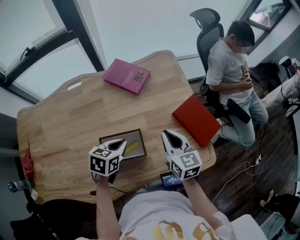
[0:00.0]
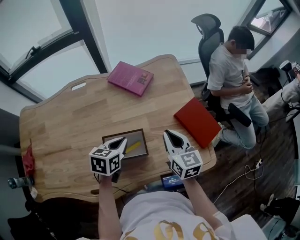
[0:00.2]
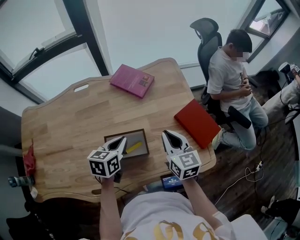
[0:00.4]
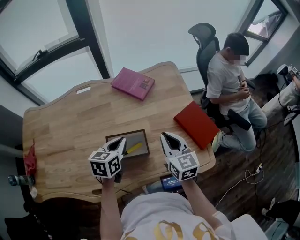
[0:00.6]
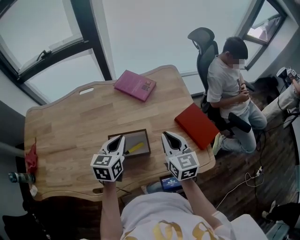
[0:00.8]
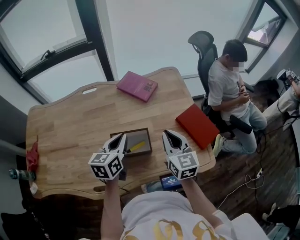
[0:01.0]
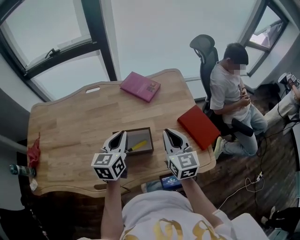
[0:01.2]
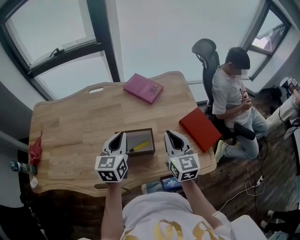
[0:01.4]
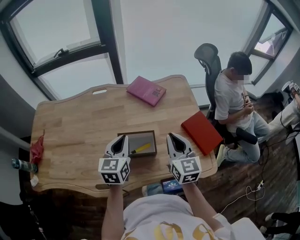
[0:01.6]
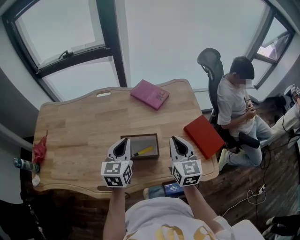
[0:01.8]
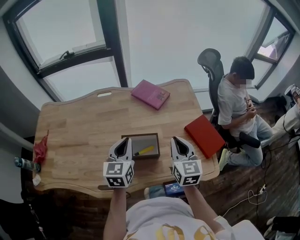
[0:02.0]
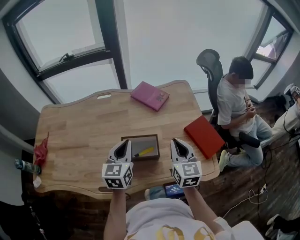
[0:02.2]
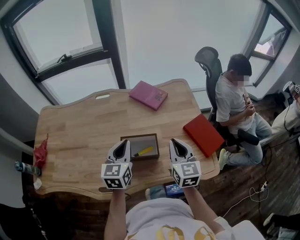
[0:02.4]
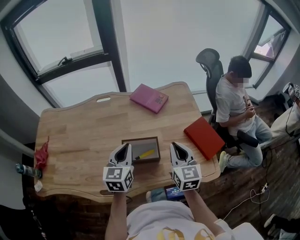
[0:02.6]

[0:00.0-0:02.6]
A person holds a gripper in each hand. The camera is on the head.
0:00.0 to 0:01.2: The left gripper heads upward, covering about 15 cm, and swivels approximately 40 degrees; the right gripper goes roughly 10 cm upward.
0:01.2 to 0:02.6: The grippers make only small movements.

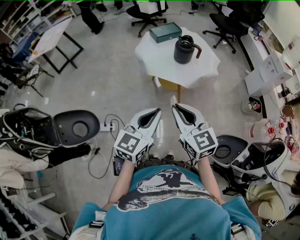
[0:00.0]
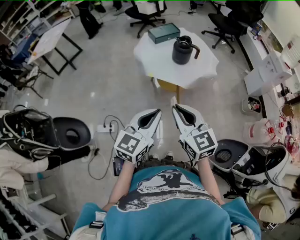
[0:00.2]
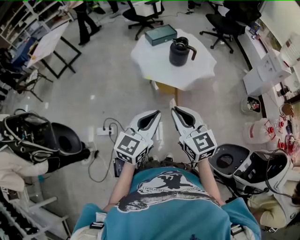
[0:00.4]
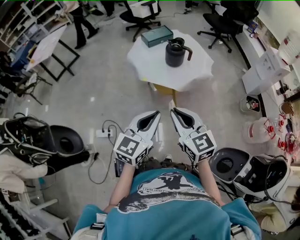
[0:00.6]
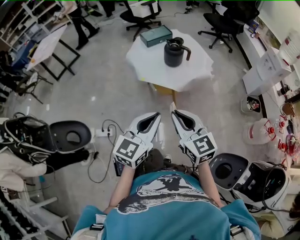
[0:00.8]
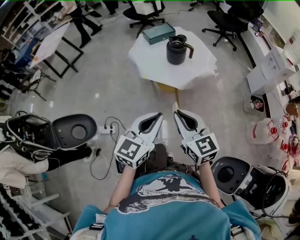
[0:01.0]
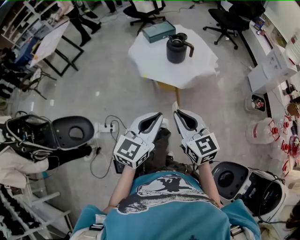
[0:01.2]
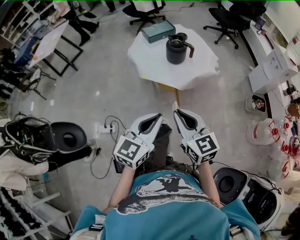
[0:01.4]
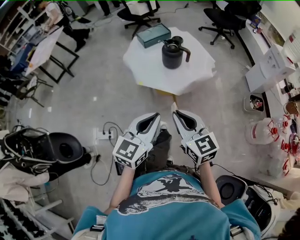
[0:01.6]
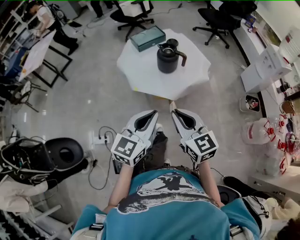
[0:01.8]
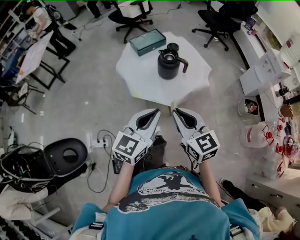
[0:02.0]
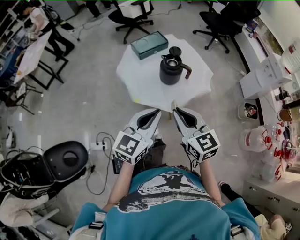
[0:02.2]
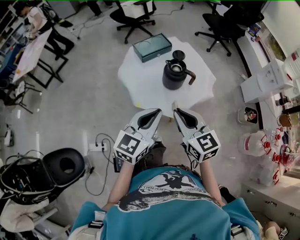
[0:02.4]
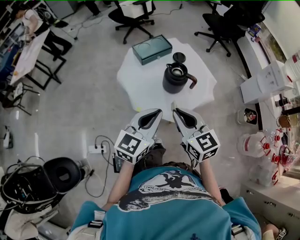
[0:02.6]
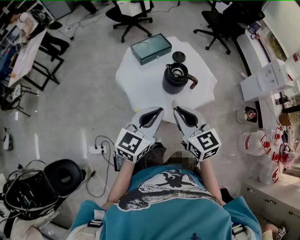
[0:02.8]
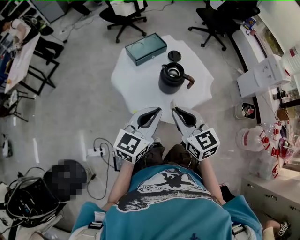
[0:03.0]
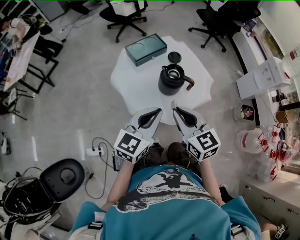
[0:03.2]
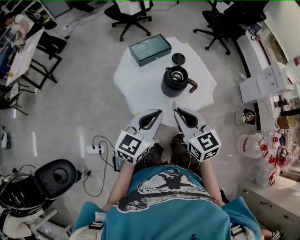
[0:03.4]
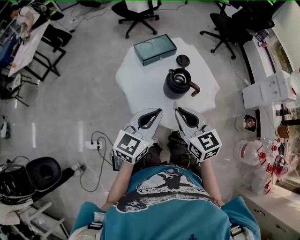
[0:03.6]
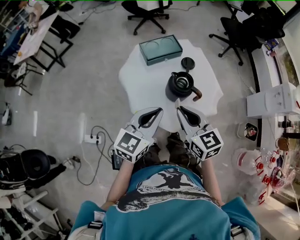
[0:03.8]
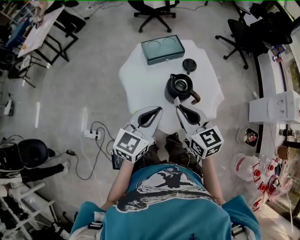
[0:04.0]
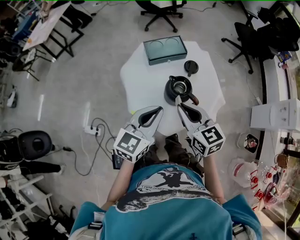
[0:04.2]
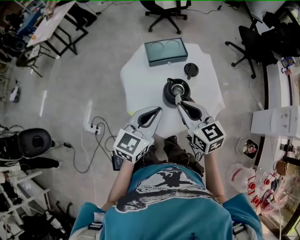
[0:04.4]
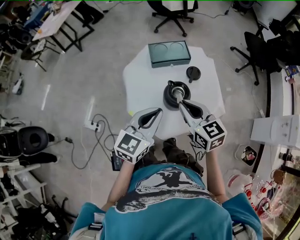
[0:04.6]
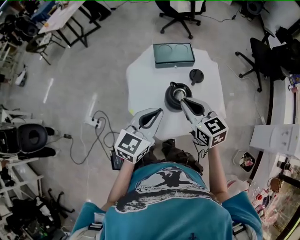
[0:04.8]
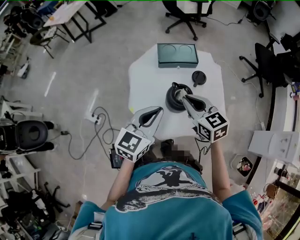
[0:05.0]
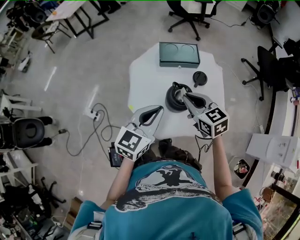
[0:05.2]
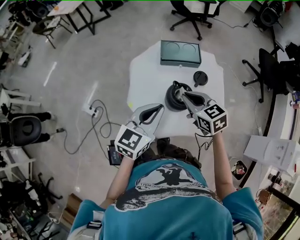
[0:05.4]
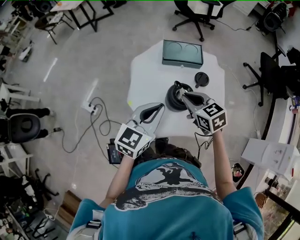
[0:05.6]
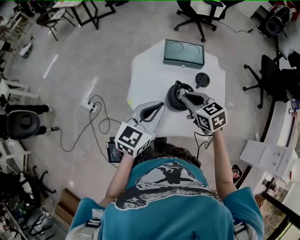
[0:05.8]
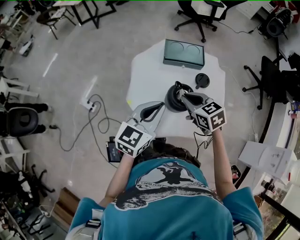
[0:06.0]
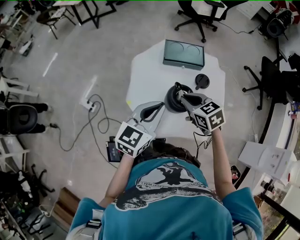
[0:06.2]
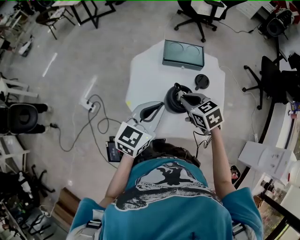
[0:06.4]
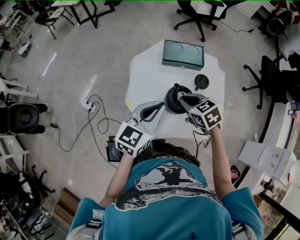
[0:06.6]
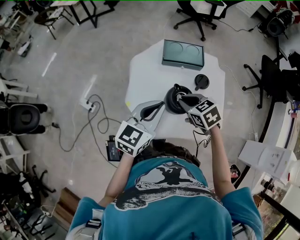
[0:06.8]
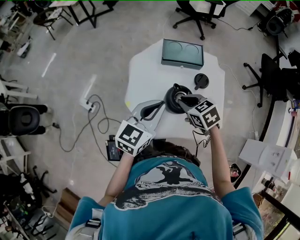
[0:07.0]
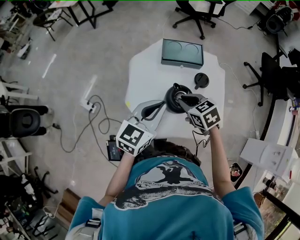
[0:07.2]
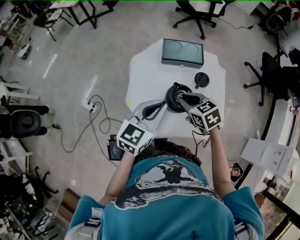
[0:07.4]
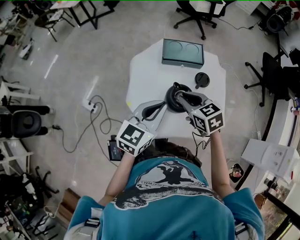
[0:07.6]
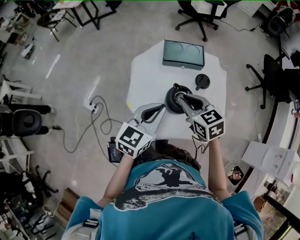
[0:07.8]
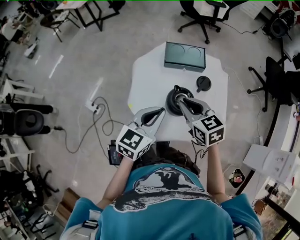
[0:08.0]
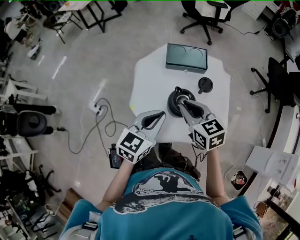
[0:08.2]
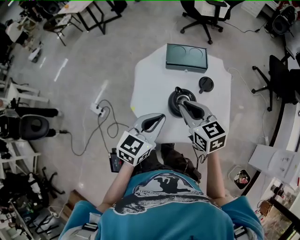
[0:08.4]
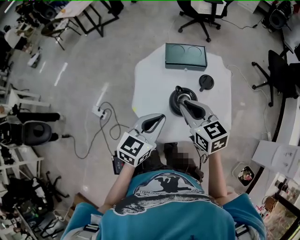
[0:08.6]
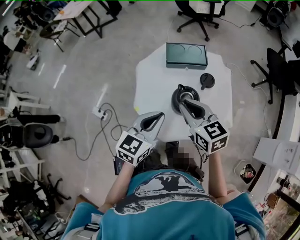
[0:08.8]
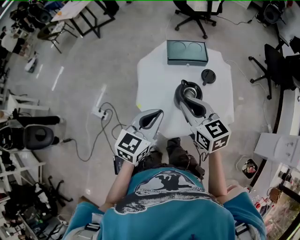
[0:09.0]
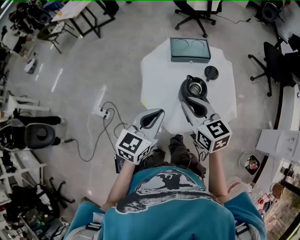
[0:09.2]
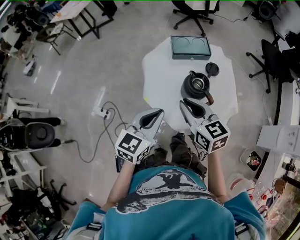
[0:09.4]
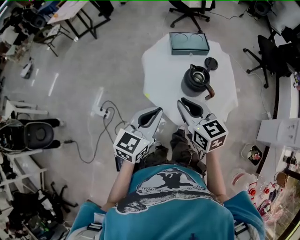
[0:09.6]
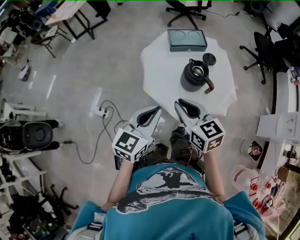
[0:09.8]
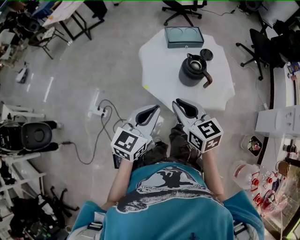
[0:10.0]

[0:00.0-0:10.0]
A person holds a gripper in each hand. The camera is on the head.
0:00.0 to 0:01.4: Both grippers move to the right, roughly 5 cm.
0:01.4 to 0:02.8: The two grippers go roughly 25 cm forward.
0:02.8 to 0:04.2: The grippers both shift forward by roughly 10 cm.
0:04.2 to 0:05.8: The right gripper goes roughly 10 cm forward and downward, and rotates approximately 30 degrees.
0:05.8 to 0:07.2: The grippers move only a little.
0:07.2 to 0:08.6: The right gripper moves upward, roughly 10 cm, and changes its angle by about 30 degrees.
0:08.6 to 0:10.0: Both grippers move backward and to the left, some 20 cm.

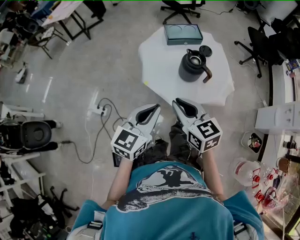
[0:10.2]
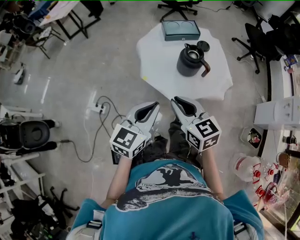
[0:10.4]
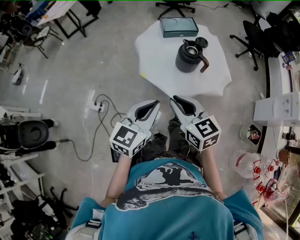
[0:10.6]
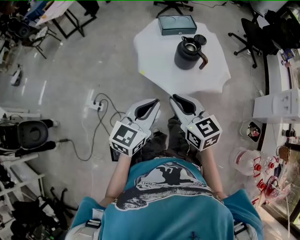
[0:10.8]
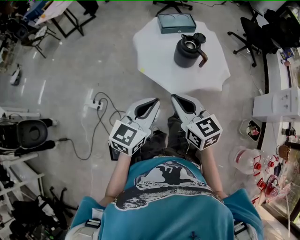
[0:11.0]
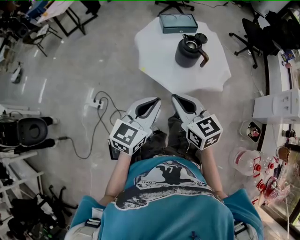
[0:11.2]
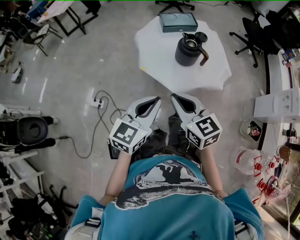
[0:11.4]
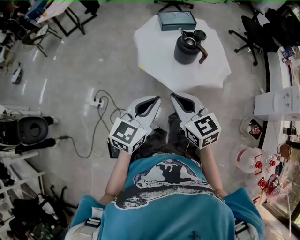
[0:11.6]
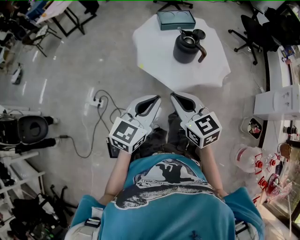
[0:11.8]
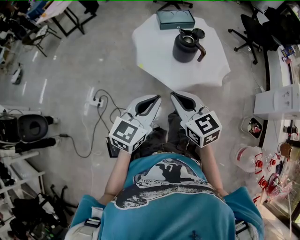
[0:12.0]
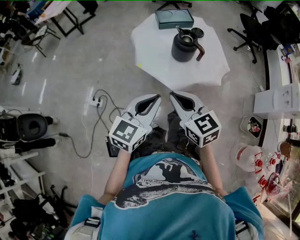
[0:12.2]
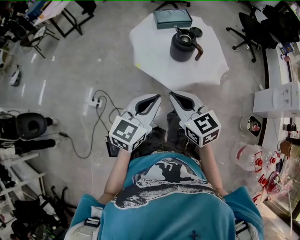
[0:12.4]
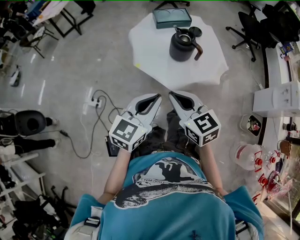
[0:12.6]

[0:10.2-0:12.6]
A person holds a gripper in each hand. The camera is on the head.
0:10.2 to 0:11.4: Both grippers travel together backward, roughly 5 cm.
0:11.4 to 0:12.6: The grippers move only a little.

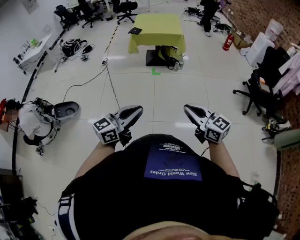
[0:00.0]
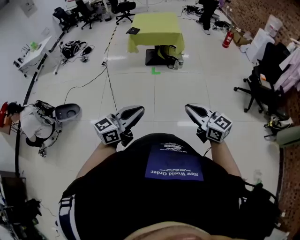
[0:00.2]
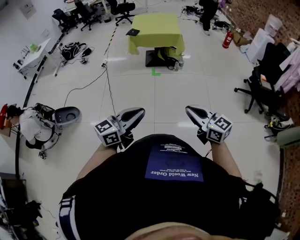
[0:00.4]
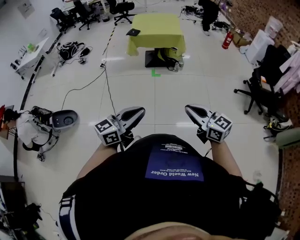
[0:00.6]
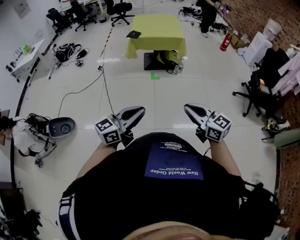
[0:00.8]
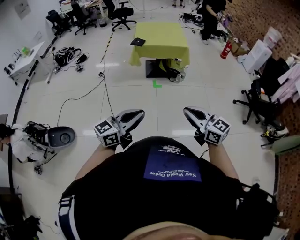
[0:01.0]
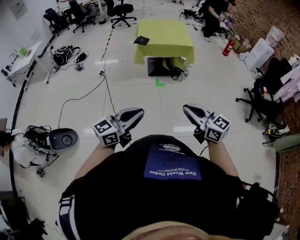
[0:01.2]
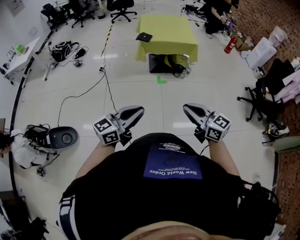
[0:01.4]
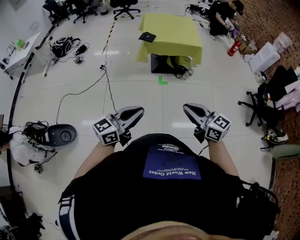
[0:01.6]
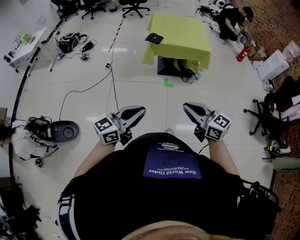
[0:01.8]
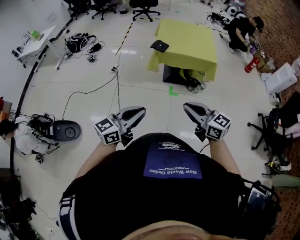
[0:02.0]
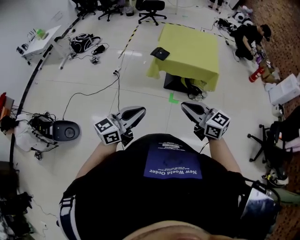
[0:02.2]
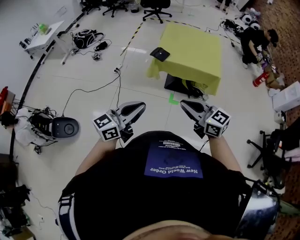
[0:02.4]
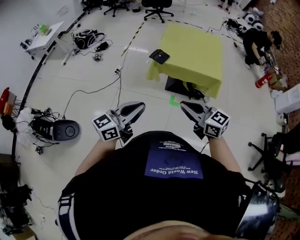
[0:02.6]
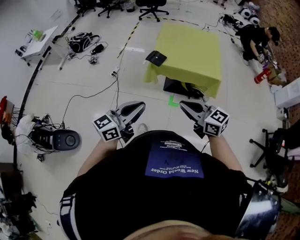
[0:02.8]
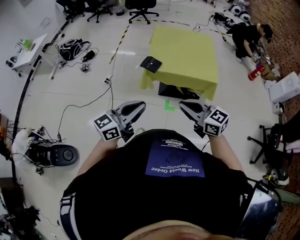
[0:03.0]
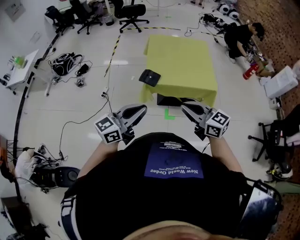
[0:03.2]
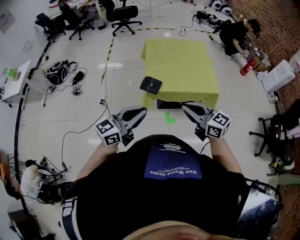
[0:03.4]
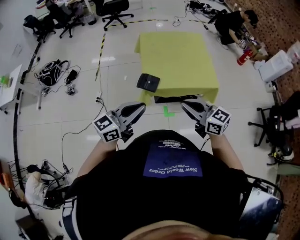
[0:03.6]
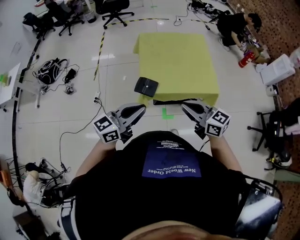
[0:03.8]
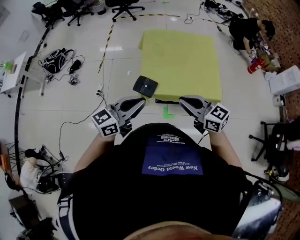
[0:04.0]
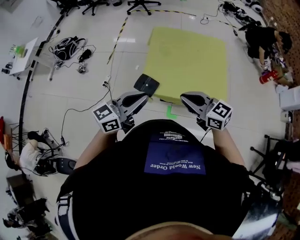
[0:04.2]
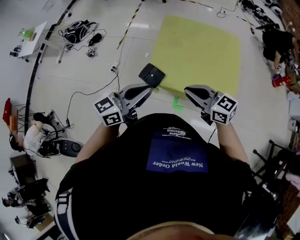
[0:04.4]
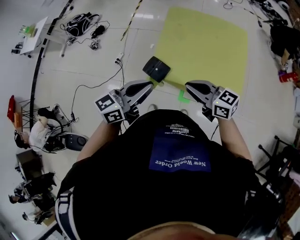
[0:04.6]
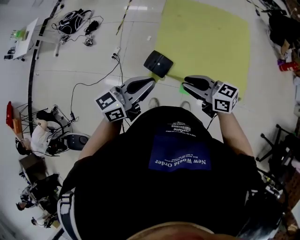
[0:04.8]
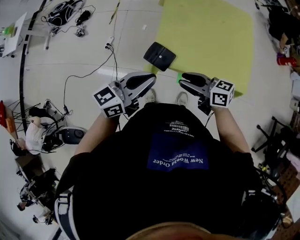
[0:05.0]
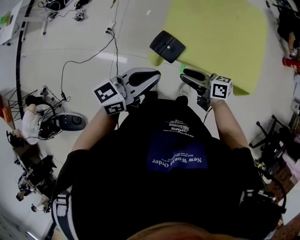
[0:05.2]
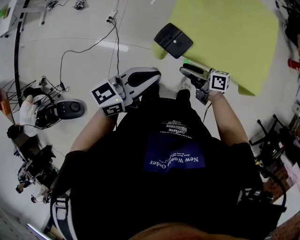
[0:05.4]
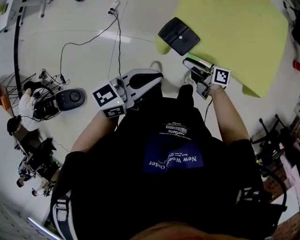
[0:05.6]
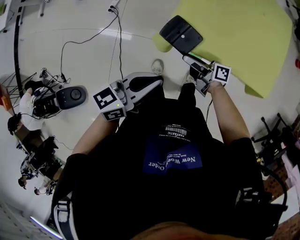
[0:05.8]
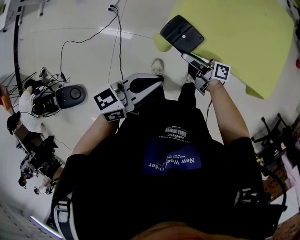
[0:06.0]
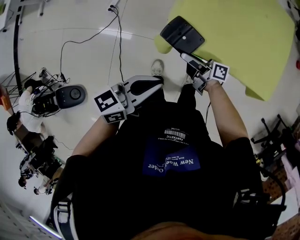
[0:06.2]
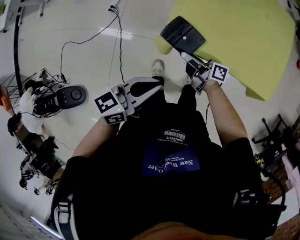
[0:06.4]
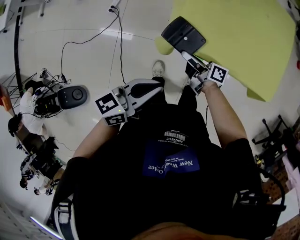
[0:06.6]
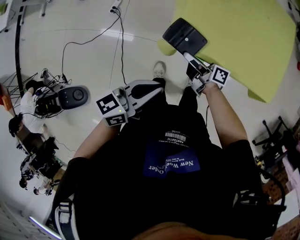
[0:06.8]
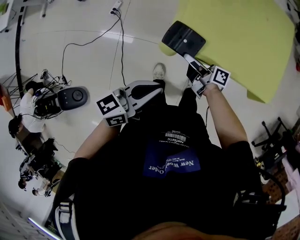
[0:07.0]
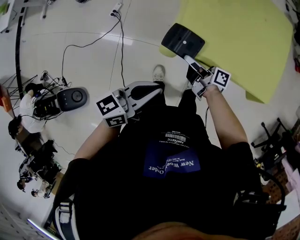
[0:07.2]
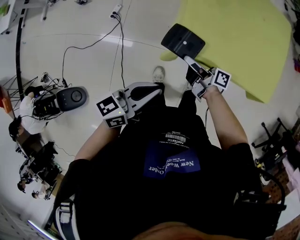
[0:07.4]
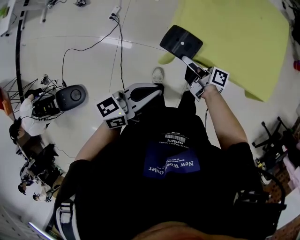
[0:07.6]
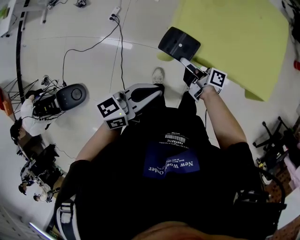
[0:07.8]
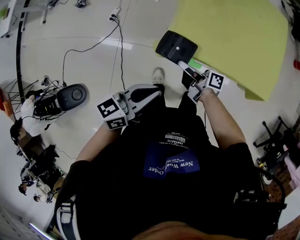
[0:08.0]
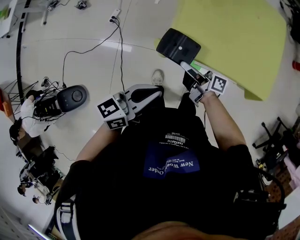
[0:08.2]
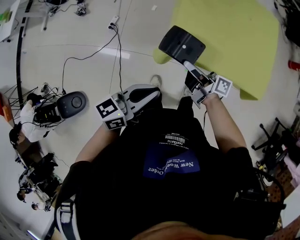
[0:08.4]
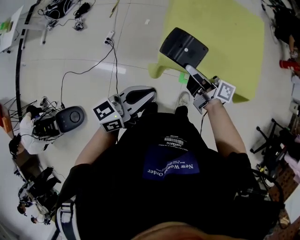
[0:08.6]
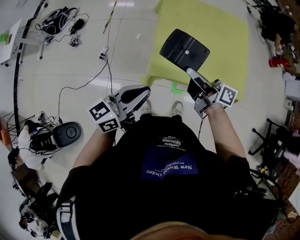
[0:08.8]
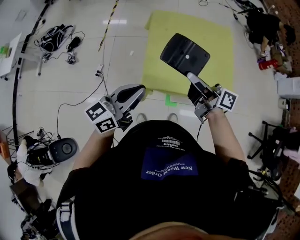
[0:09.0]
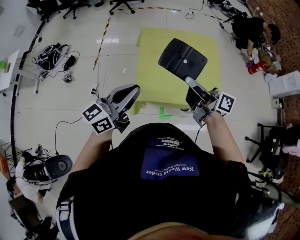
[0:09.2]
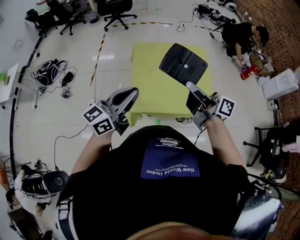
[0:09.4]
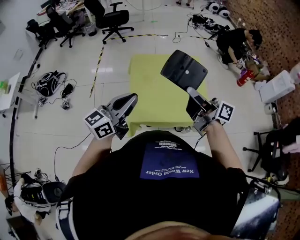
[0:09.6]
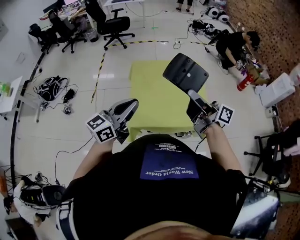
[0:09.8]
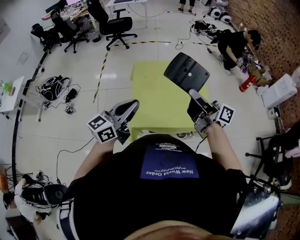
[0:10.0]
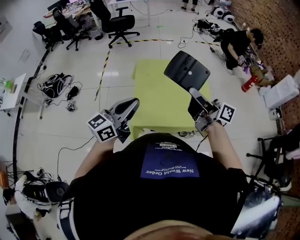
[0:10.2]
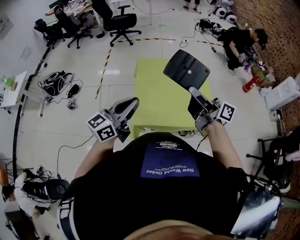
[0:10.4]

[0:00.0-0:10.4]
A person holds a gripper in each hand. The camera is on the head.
0:00.0 to 0:01.4: Both grippers travel together forward and to the left, approximately 35 cm.
0:01.4 to 0:03.0: Both grippers are carried forward, some 50 cm.
0:03.0 to 0:04.4: The grippers both shift forward by about 30 cm.
0:04.4 to 0:06.0: The left gripper is displaced downward by approximately 20 cm, and rotates some 20 degrees. Meanwhile the right gripper moves downward, about 30 cm, rotates around the line of its fingers by about 60 degrees, clockwise from behind, and opens its fingers.
0:06.0 to 0:07.4: The right gripper closes.
0:07.4 to 0:09.0: The left gripper travels upward by about 15 cm, and rotates about 20 degrees. Meanwhile the right gripper travels upward and to the right by approximately 30 cm, and turns by about 30 degrees.
0:09.0 to 0:10.4: The right gripper moves upward and to the right, roughly 15 cm. The left gripper heads upward and to the right, covering about 10 cm.
